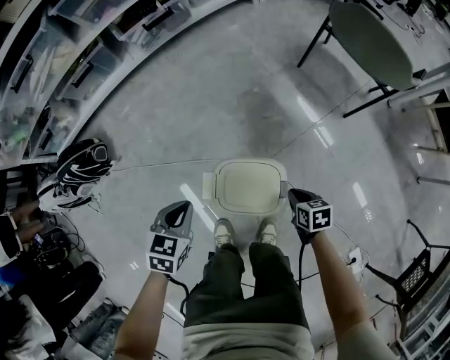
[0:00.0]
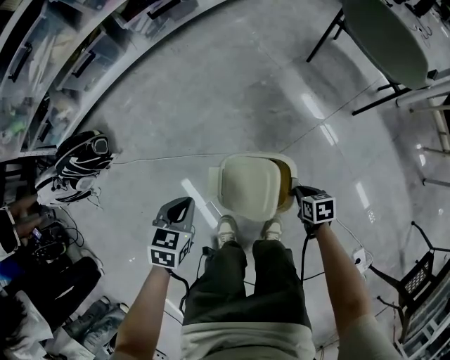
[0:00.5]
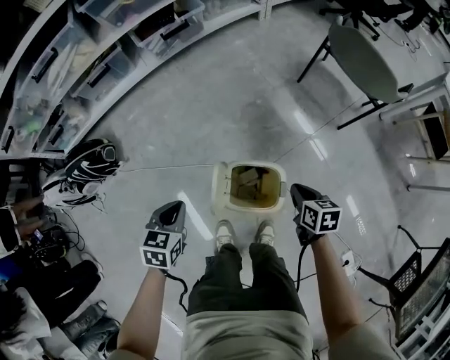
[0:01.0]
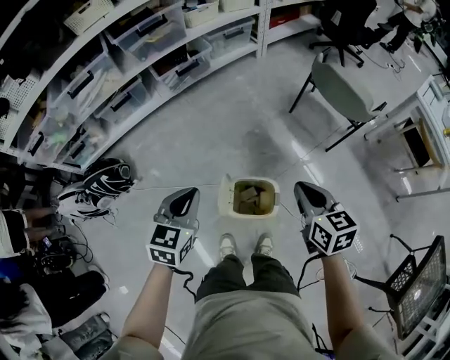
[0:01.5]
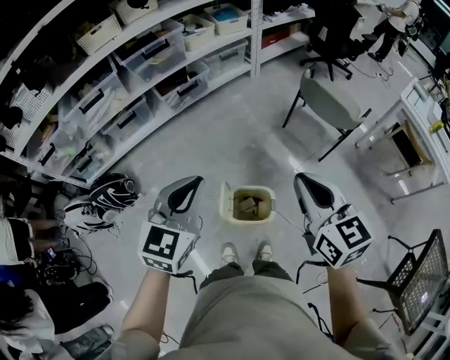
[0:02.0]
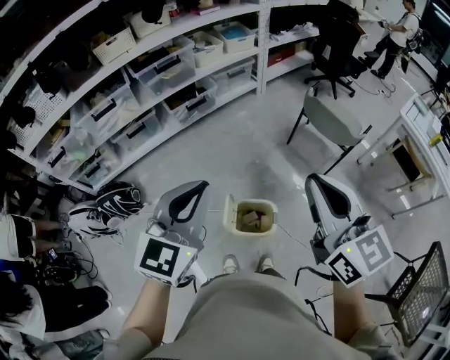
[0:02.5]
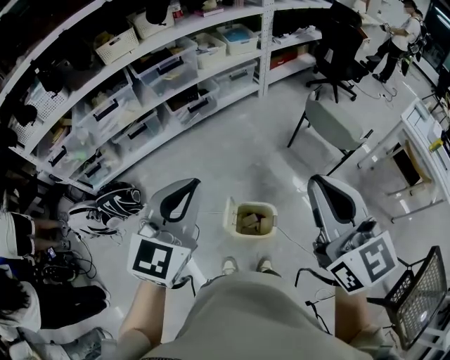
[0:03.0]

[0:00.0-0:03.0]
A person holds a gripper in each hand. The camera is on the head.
0:00.0 to 0:01.5: The right gripper is displaced upward by approximately 40 cm, and rotates approximately 30 degrees; the left gripper is displaced upward by roughly 30 cm, and rotates approximately 20 degrees.
0:01.5 to 0:03.0: The grippers both shift upward by about 30 cm. The left gripper turns by roughly 20 degrees. Meanwhile the right gripper turns by roughly 30 degrees.

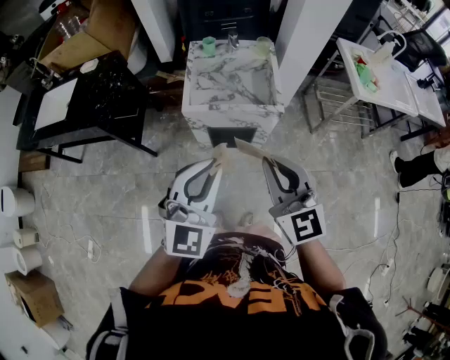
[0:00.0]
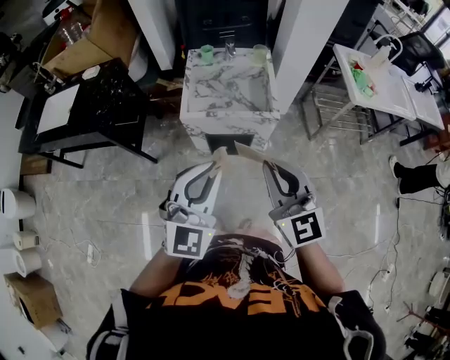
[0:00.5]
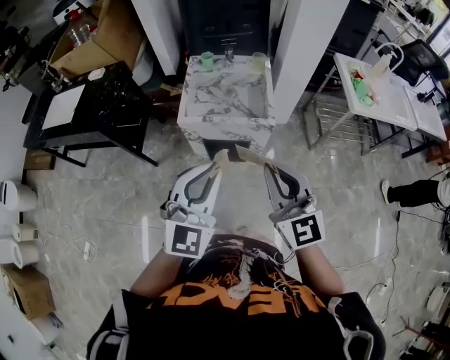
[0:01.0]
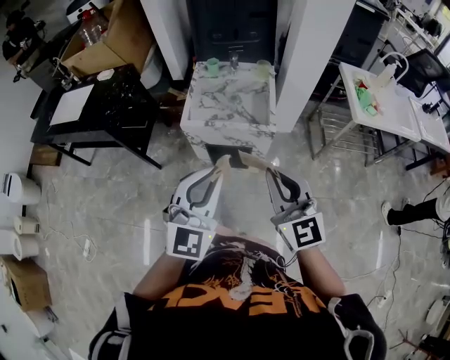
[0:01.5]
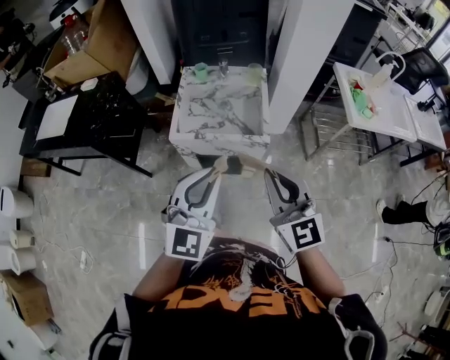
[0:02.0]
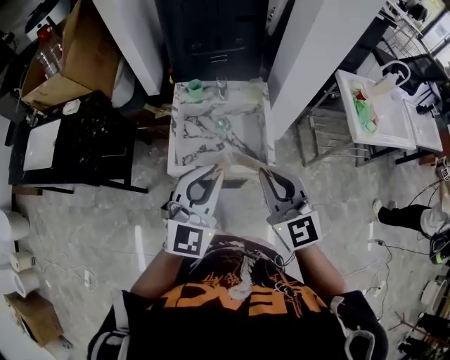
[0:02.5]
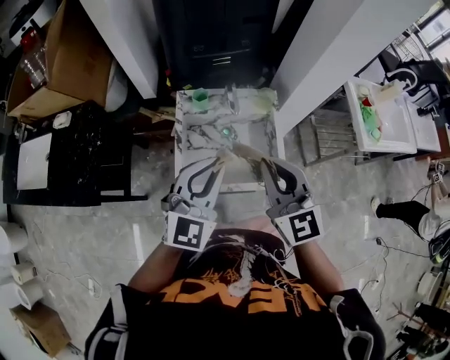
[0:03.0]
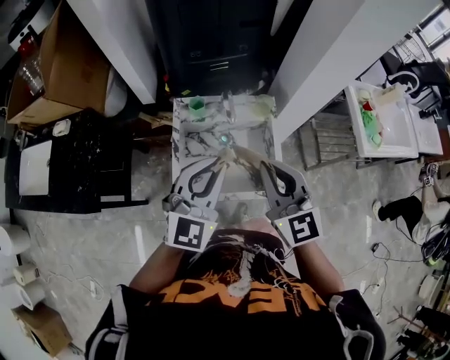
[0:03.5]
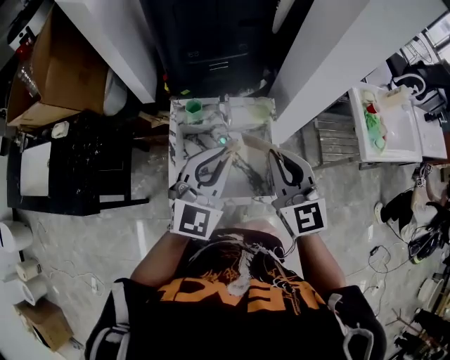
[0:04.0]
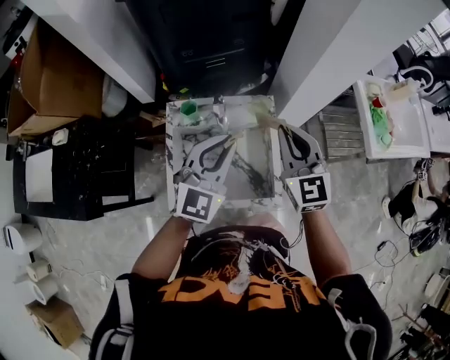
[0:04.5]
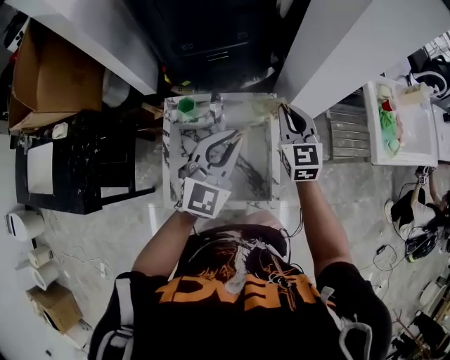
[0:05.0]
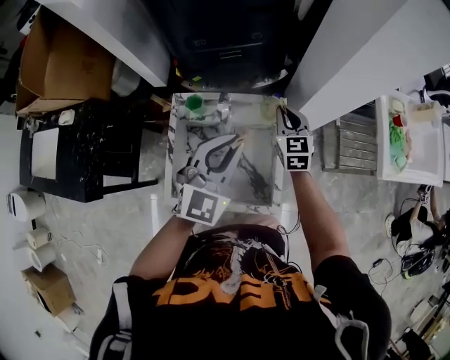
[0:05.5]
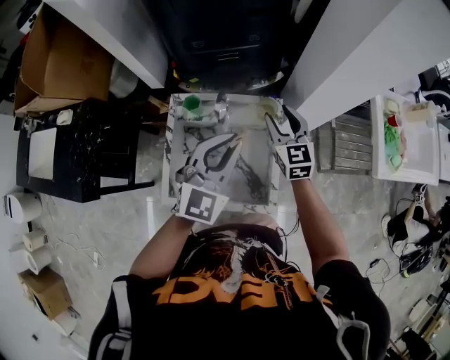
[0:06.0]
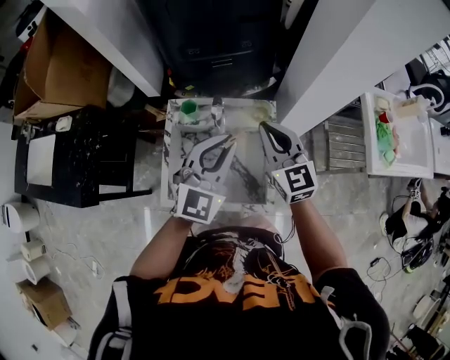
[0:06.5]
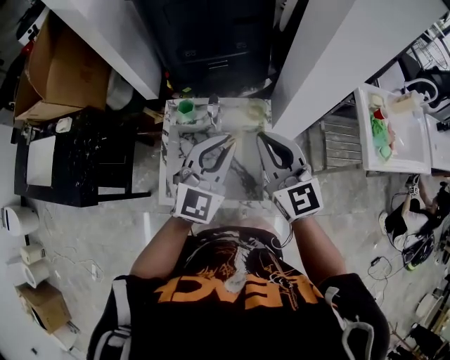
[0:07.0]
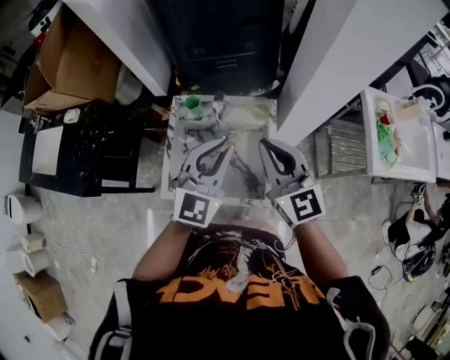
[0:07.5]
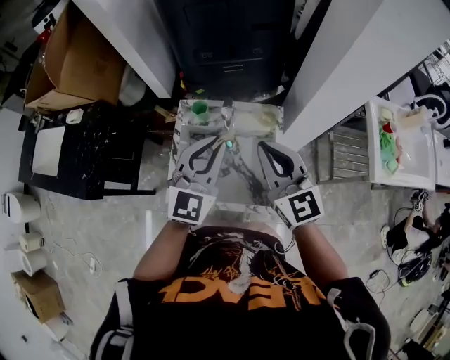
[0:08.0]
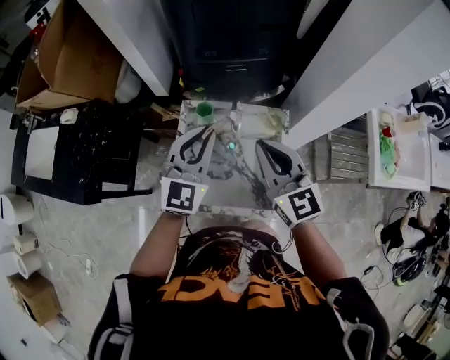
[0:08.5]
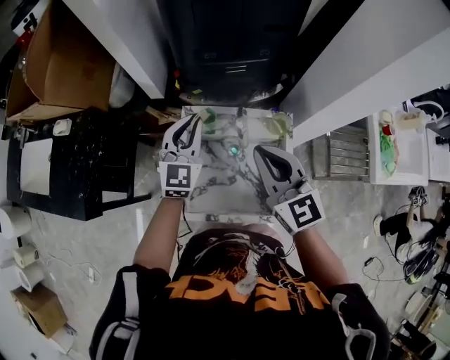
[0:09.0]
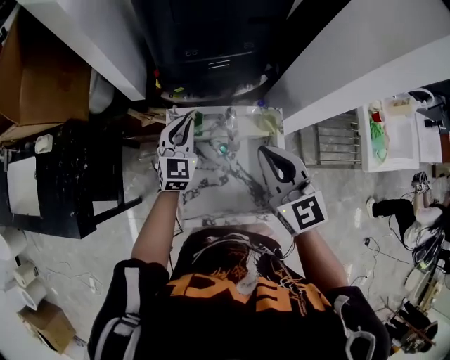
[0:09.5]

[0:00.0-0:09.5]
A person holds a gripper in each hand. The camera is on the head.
0:00.0 to 0:02.0: Both grippers travel together to the right and forward, roughly 10 cm.
0:02.0 to 0:04.0: The grippers both shift forward by approximately 35 cm.
0:04.0 to 0:05.5: The right gripper heads forward and downward, covering roughly 30 cm; the left gripper heads forward, to the right and downward, covering approximately 15 cm.
0:05.5 to 0:07.5: The right gripper is displaced backward and upward by about 25 cm, changes its angle by approximately 30 degrees, and opens, then closes once more, while the left gripper moves backward, about 5 cm.
0:07.5 to 0:09.5: The left gripper goes some 35 cm forward, downward and to the left; the right gripper travels forward and to the left by roughly 15 cm.

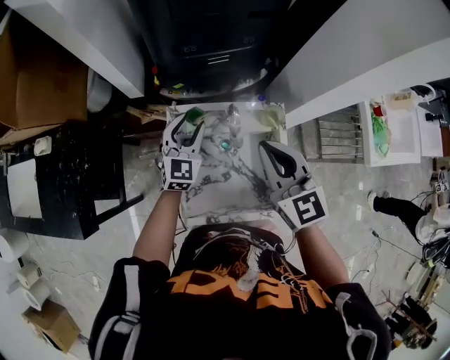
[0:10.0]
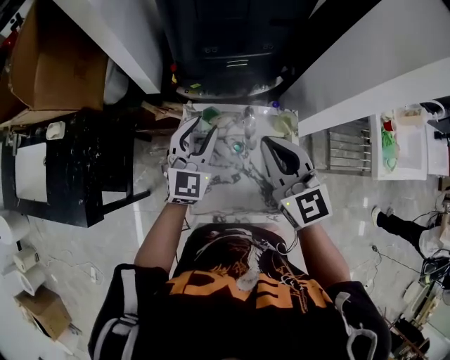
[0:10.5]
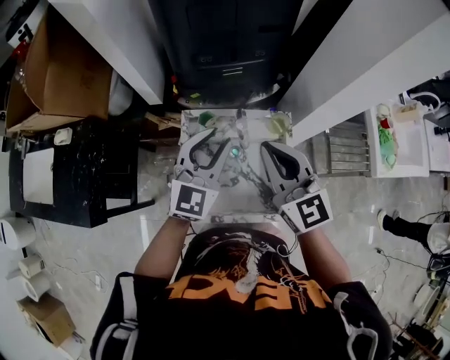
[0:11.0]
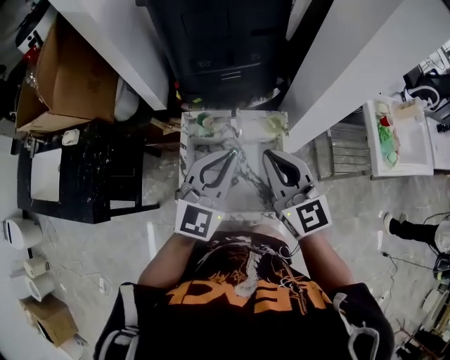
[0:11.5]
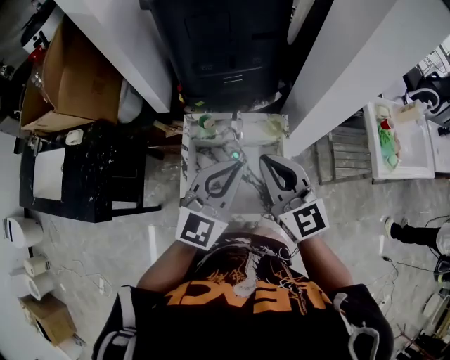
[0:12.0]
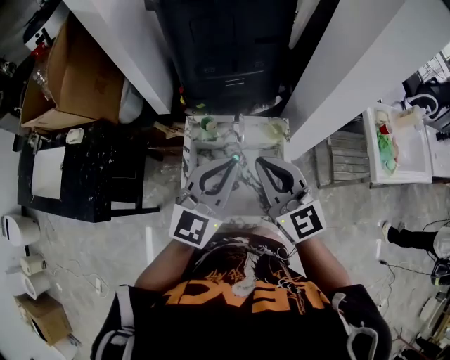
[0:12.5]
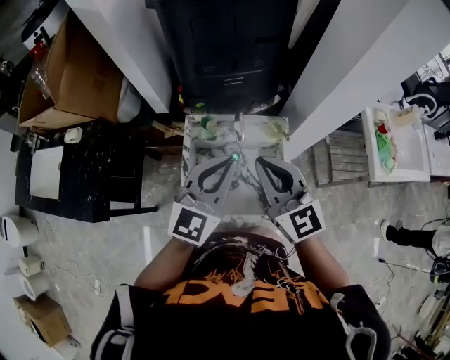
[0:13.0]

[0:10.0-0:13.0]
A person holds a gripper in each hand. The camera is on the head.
0:10.0 to 0:11.5: The left gripper shifts roughly 30 cm upward, backward and to the right, and closes its fingers. Meanwhile the right gripper moves backward and upward, some 10 cm.
0:11.5 to 0:13.0: The grippers stay close to where they were, moving slightly.

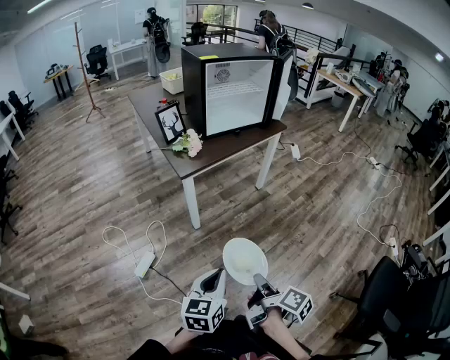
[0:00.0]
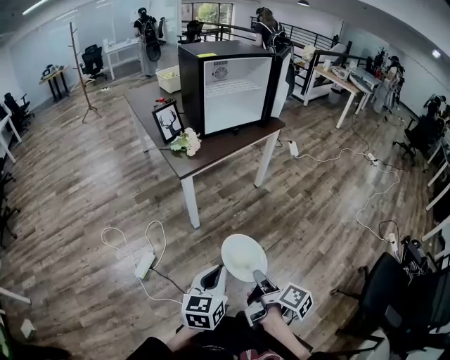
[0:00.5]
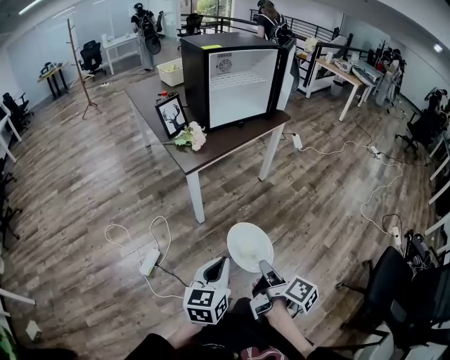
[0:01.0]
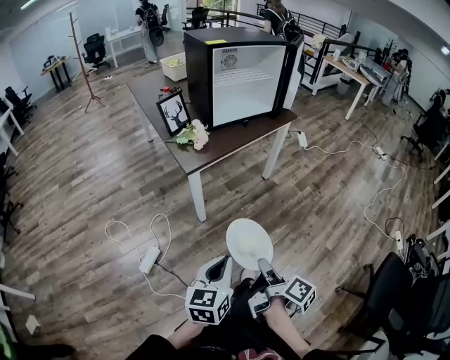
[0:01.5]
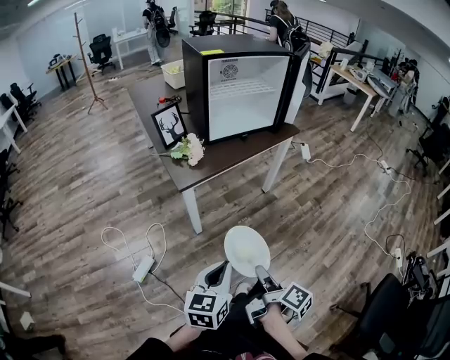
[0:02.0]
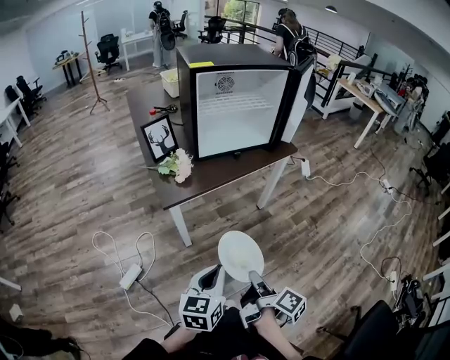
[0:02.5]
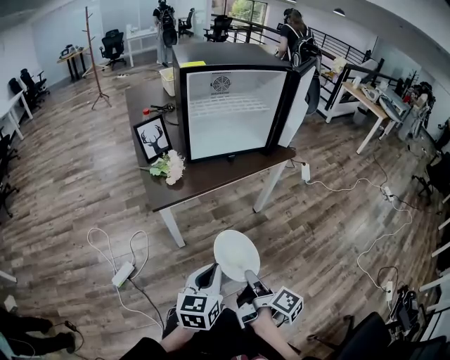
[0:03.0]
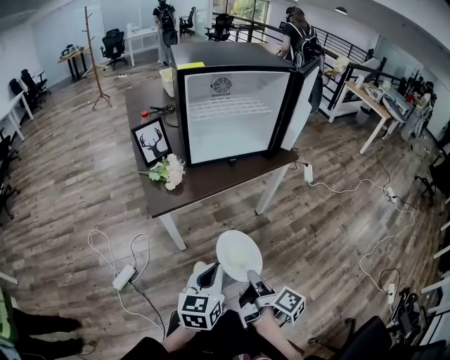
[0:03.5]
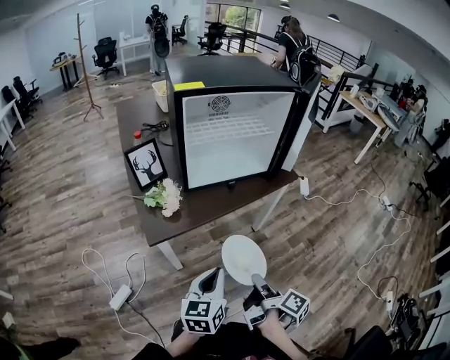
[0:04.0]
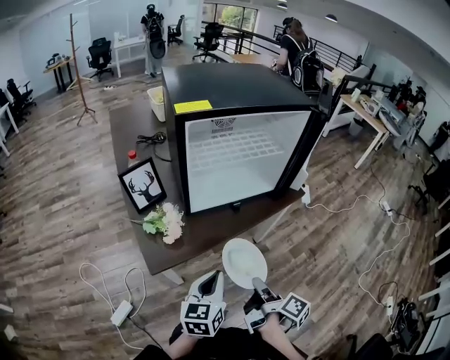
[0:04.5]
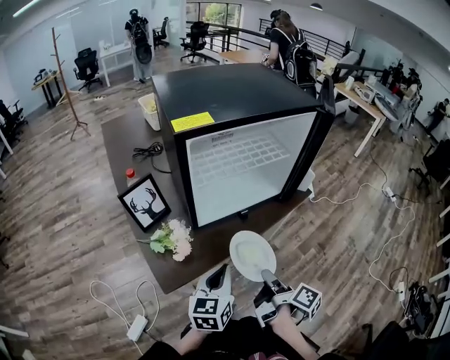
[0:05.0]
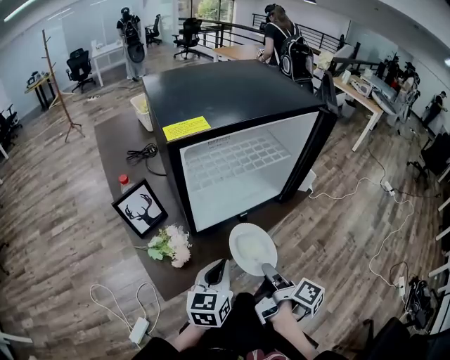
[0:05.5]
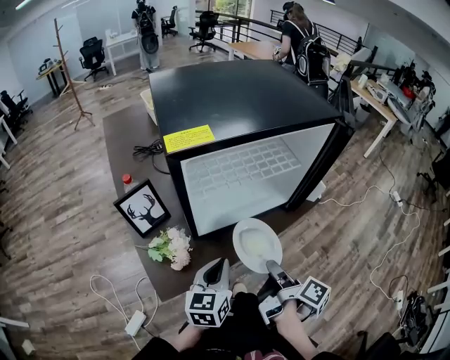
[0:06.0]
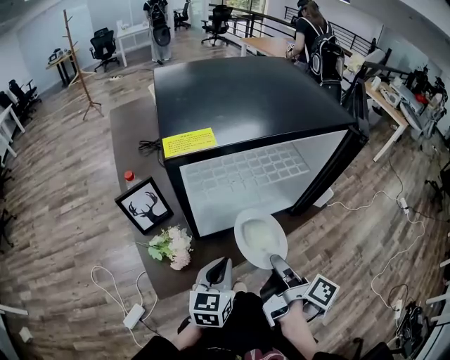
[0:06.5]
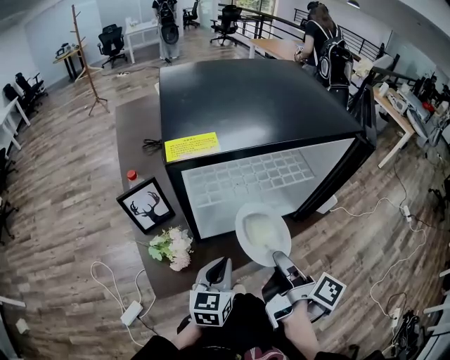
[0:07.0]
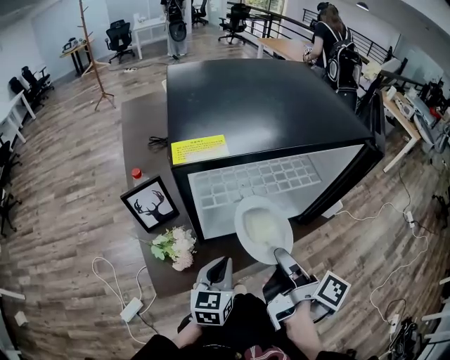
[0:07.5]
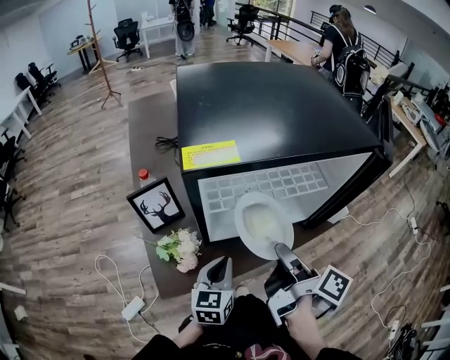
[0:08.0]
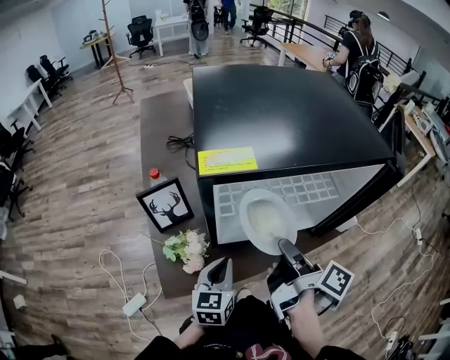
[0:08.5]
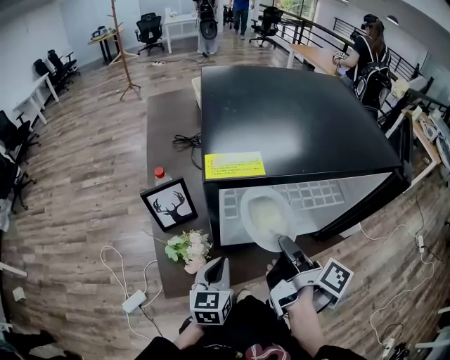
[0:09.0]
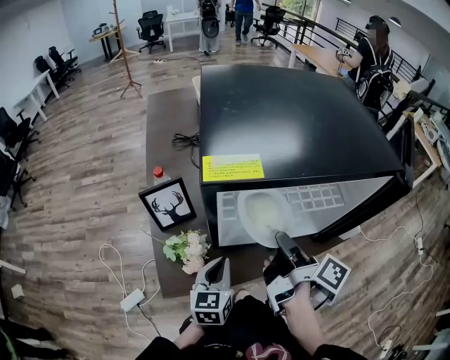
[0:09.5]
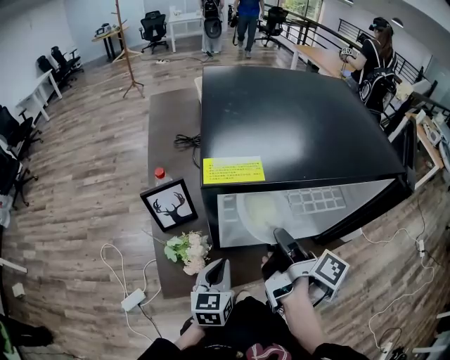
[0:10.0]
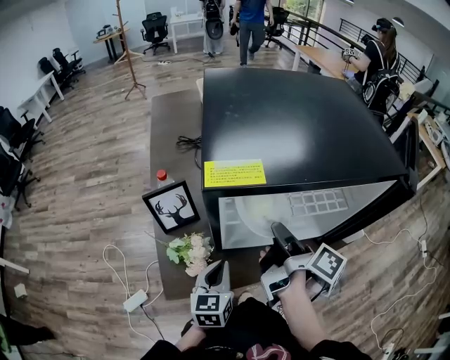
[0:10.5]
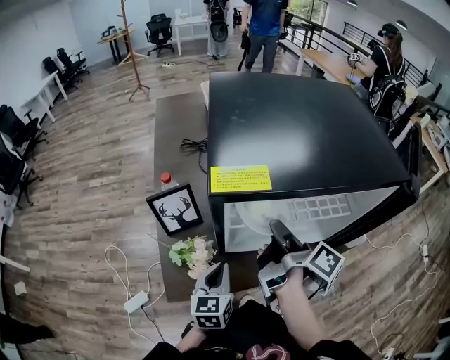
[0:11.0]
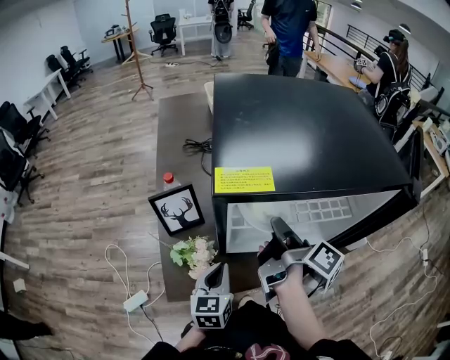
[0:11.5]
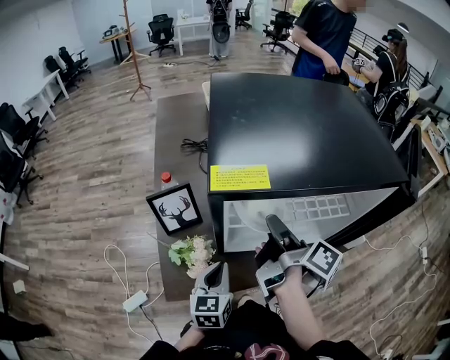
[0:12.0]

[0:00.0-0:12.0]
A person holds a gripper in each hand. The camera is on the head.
0:00.0 to 0:02.0: The left gripper shifts by some 15 cm.
0:02.0 to 0:04.0: The left gripper ends up roughly 25 cm from where it was.
0:04.0 to 0:06.0: The left gripper shifts by approximately 25 cm.
0:06.0 to 0:08.0: The left gripper shifts by roughly 5 cm.
